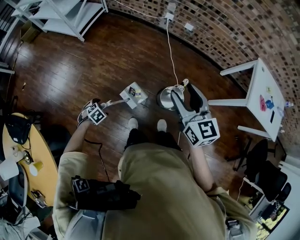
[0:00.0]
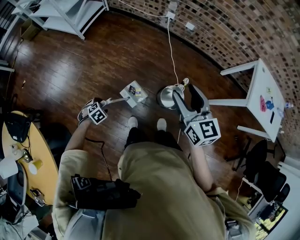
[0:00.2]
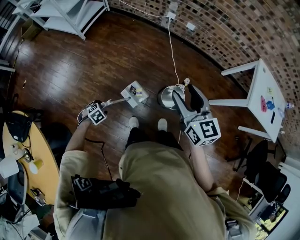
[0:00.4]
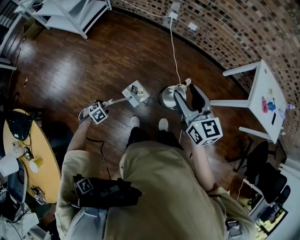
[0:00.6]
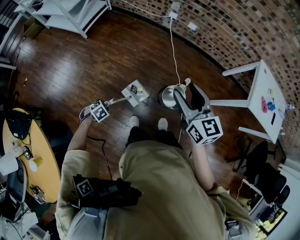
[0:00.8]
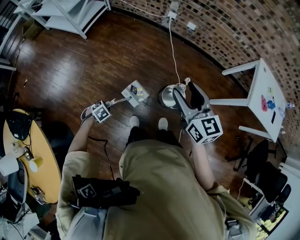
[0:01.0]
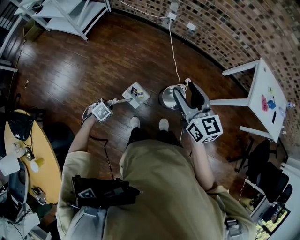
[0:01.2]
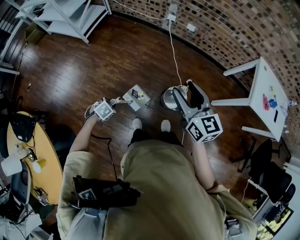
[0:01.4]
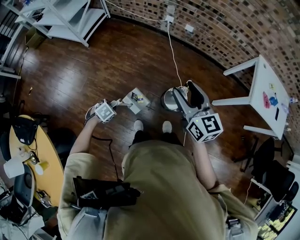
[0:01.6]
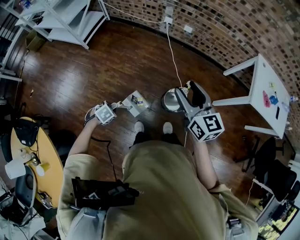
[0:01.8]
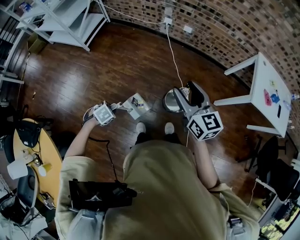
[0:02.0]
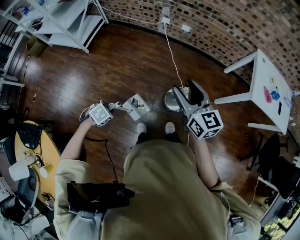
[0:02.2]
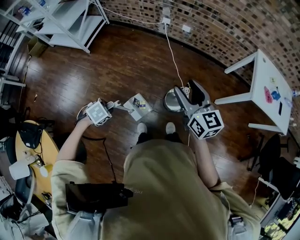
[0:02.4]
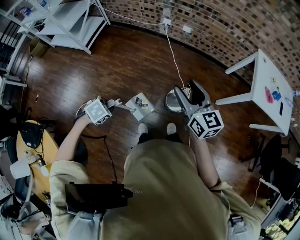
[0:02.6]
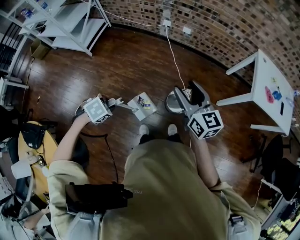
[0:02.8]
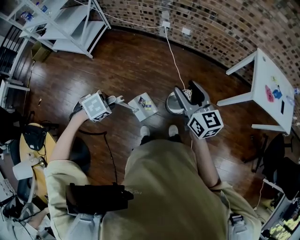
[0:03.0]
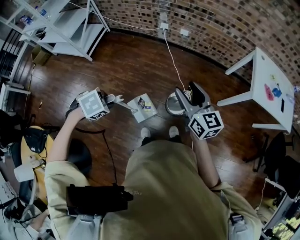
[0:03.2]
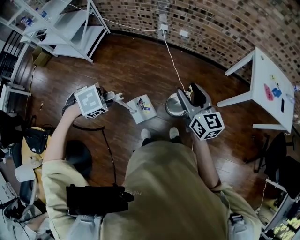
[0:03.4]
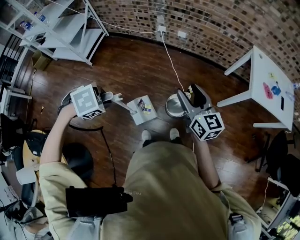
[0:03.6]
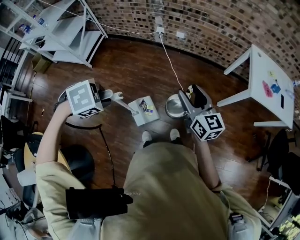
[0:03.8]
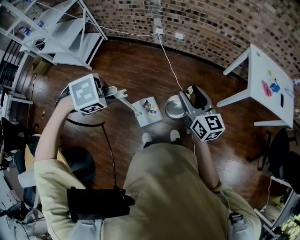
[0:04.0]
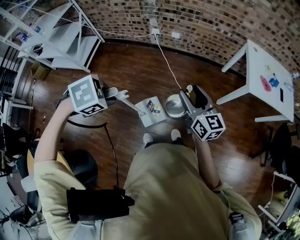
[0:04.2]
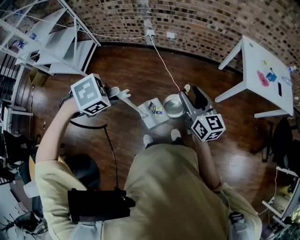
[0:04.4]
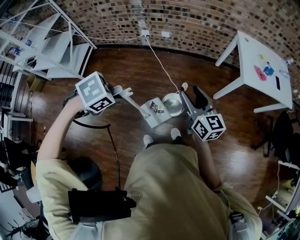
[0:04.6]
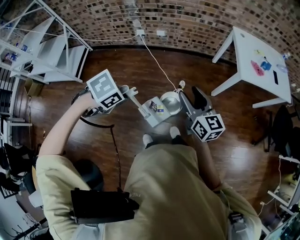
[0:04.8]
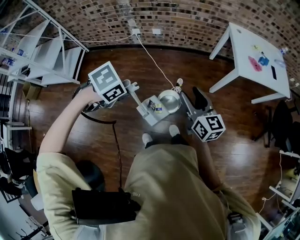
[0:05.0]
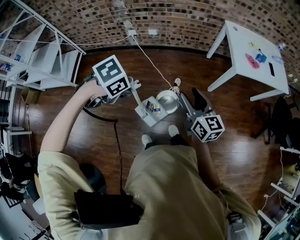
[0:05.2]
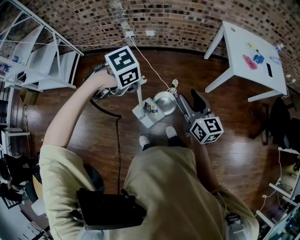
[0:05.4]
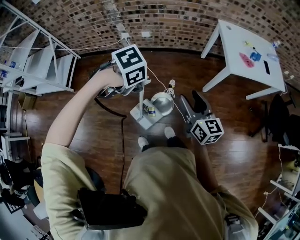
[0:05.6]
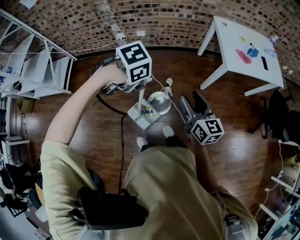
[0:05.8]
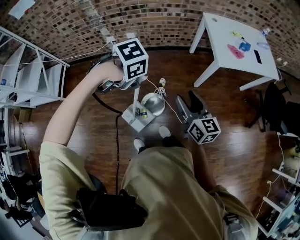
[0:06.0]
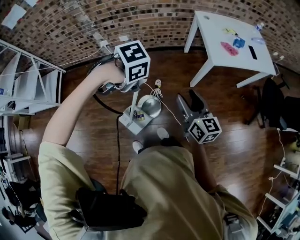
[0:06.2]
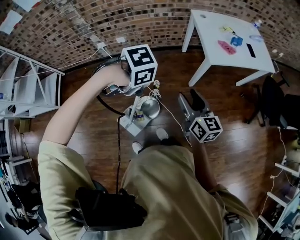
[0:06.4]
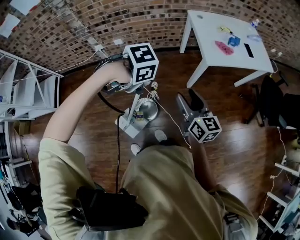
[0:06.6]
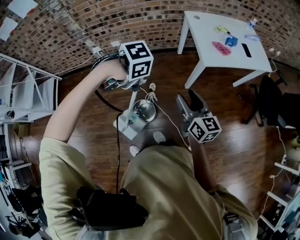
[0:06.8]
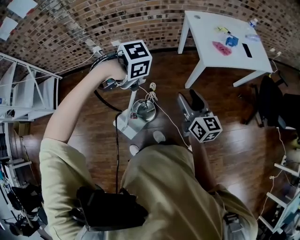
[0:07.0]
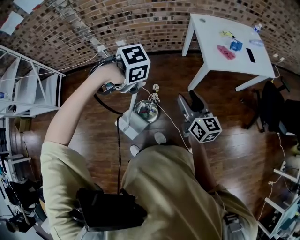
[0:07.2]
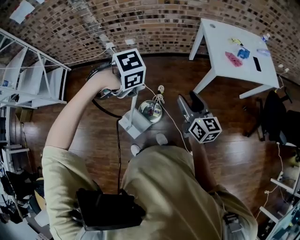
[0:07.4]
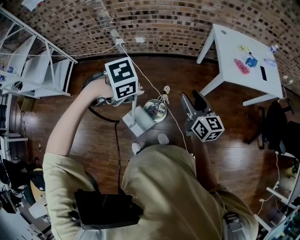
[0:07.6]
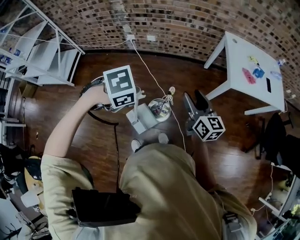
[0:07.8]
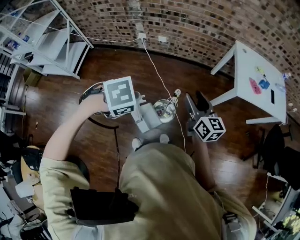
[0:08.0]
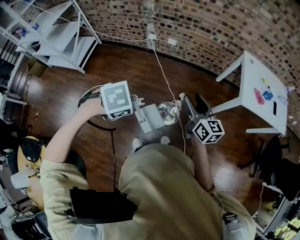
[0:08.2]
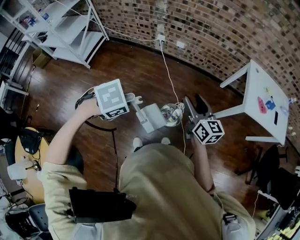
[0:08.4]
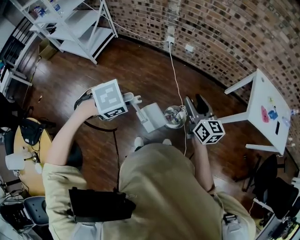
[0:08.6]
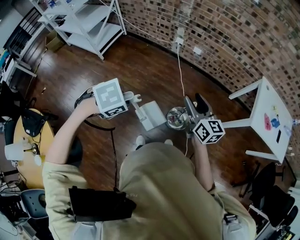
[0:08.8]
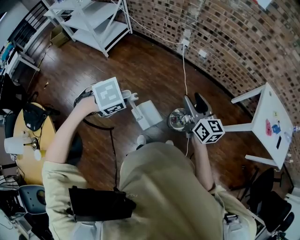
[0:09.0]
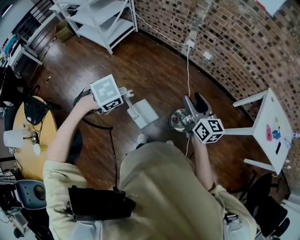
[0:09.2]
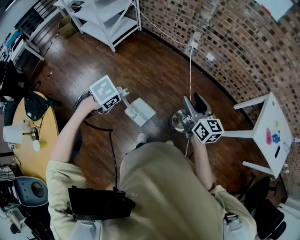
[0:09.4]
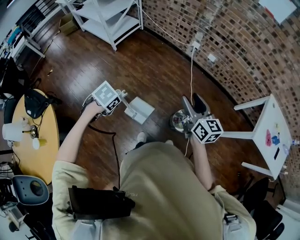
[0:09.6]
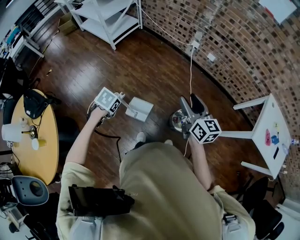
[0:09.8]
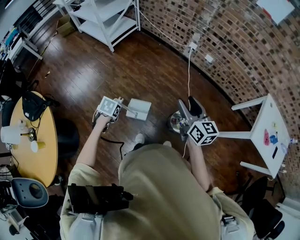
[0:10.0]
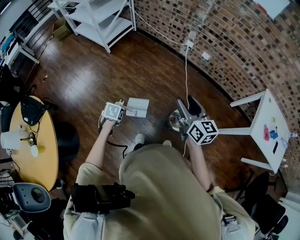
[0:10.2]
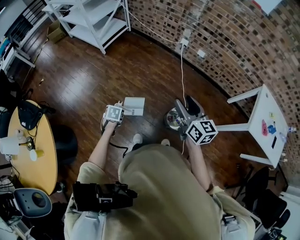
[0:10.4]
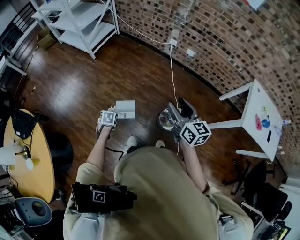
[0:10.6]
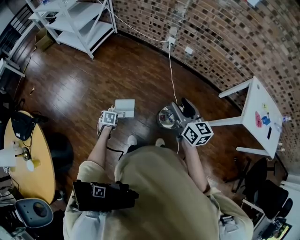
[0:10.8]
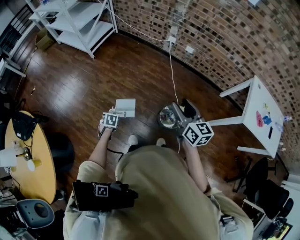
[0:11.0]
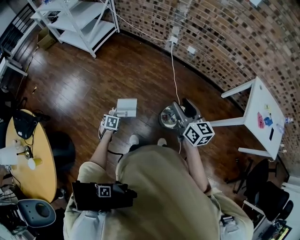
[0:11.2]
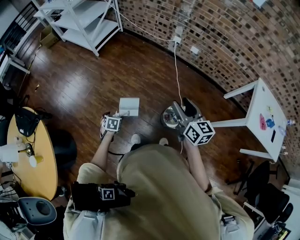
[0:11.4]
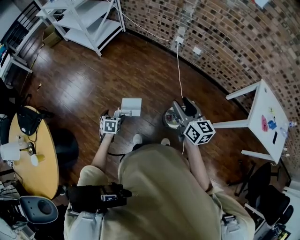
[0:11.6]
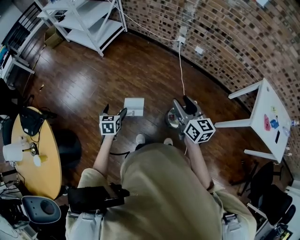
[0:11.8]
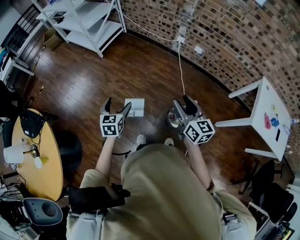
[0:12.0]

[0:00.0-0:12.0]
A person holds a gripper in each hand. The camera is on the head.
0:00.0 to 0:01.6: The left gripper moves roughly 5 cm, and closes its fingers.
0:01.6 to 0:03.0: The left gripper travels upward by some 20 cm.
0:03.0 to 0:04.4: The right gripper changes place by about 10 cm. Meanwhile the left gripper shifts about 15 cm upward.
0:04.4 to 0:06.0: The left gripper moves approximately 25 cm. The right gripper changes place by roughly 15 cm.
0:07.6 to 0:09.0: The right gripper shifts by roughly 30 cm, and turns by some 30 degrees. The left gripper ends up some 35 cm from where it was, and swivels approximately 30 degrees.
0:09.0 to 0:10.4: The right gripper changes place by some 5 cm. Meanwhile the left gripper heads downward, covering about 30 cm, and rotates around the line of its fingers by roughly 50 degrees, counterclockwise from behind.
0:10.4 to 0:12.0: The left gripper shifts roughly 15 cm upward, angles its fingers upward, by roughly 40 degrees, and opens its fingers.

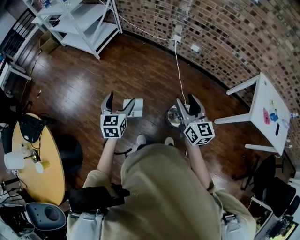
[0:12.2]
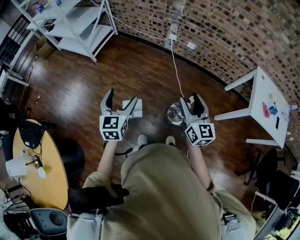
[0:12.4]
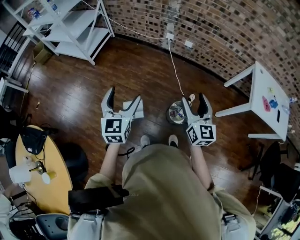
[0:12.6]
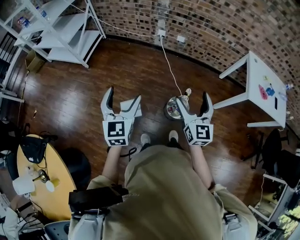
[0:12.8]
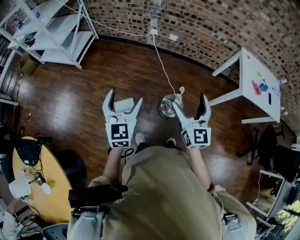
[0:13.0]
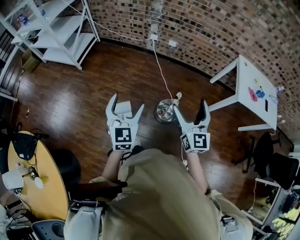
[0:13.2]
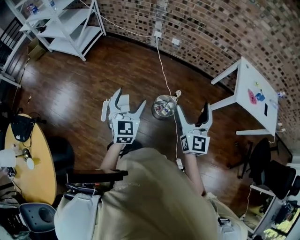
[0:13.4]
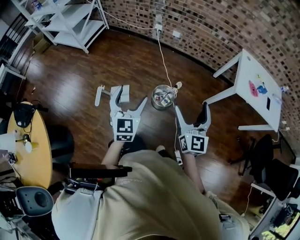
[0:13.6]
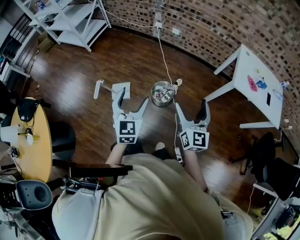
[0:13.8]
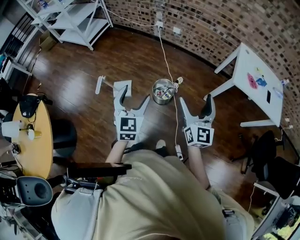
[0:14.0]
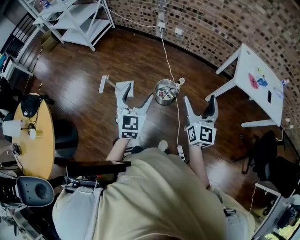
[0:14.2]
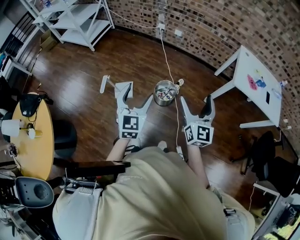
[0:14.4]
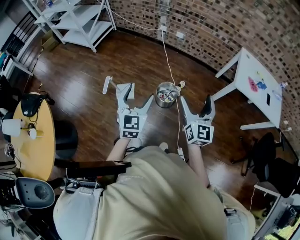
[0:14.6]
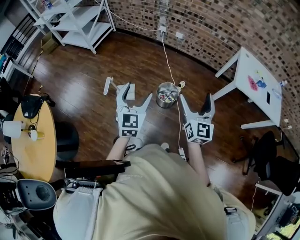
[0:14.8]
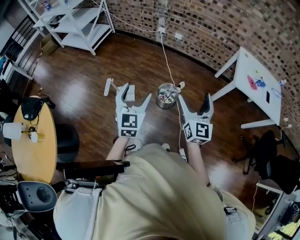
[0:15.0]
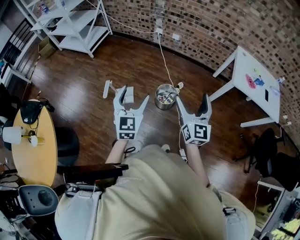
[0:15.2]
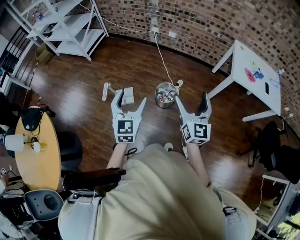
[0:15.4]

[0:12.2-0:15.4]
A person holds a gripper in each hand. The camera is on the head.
0:12.2 to 0:13.8: The left gripper is displaced to the right and backward by some 35 cm, while the right gripper moves backward and to the right, approximately 35 cm, turns by some 20 degrees, and opens.
0:13.8 to 0:15.4: Both grippers move to the left, about 5 cm.

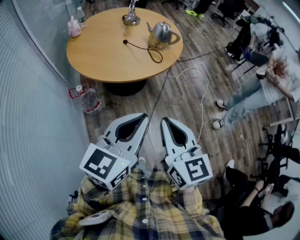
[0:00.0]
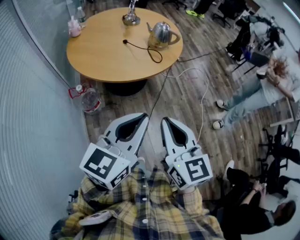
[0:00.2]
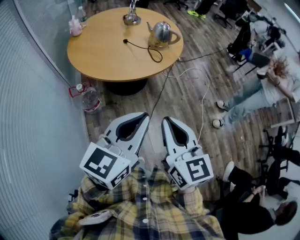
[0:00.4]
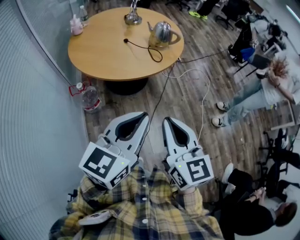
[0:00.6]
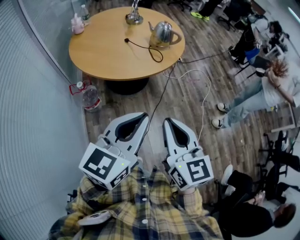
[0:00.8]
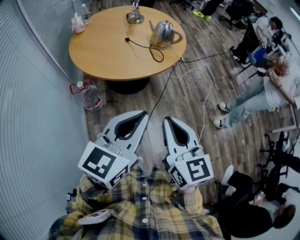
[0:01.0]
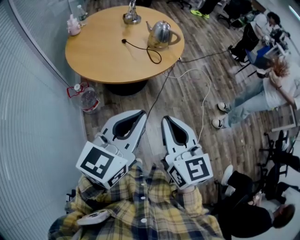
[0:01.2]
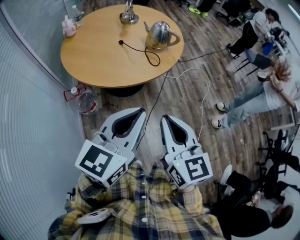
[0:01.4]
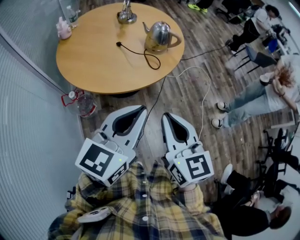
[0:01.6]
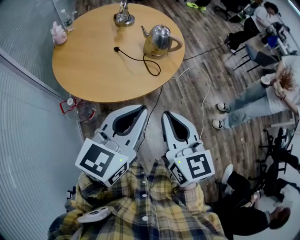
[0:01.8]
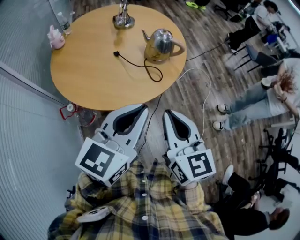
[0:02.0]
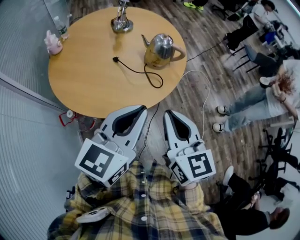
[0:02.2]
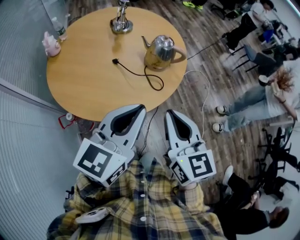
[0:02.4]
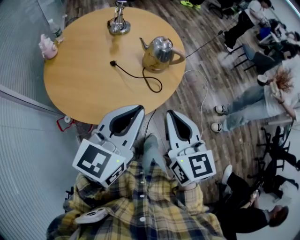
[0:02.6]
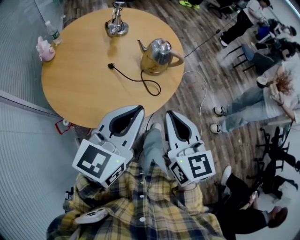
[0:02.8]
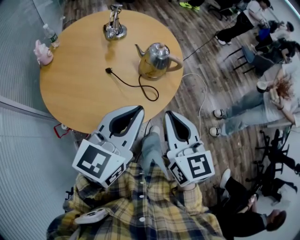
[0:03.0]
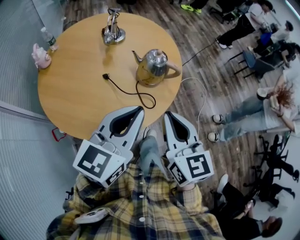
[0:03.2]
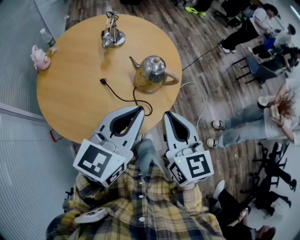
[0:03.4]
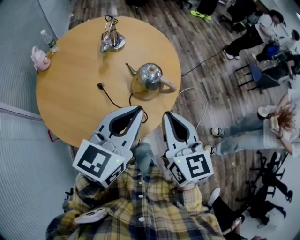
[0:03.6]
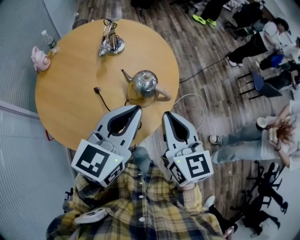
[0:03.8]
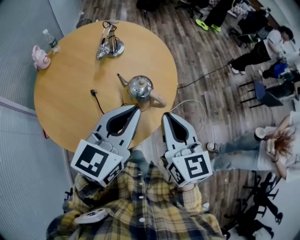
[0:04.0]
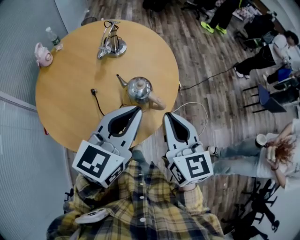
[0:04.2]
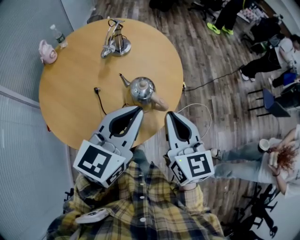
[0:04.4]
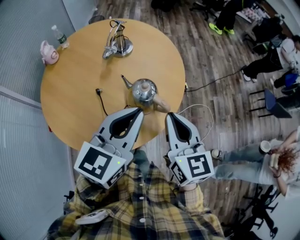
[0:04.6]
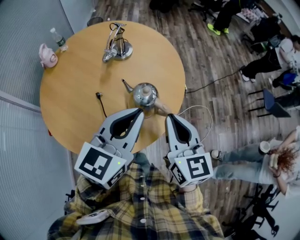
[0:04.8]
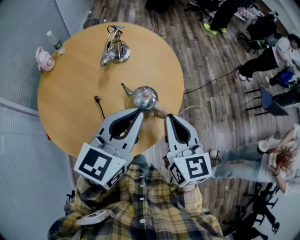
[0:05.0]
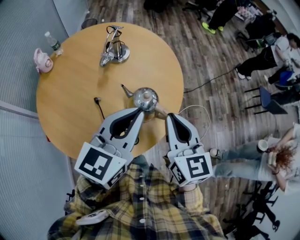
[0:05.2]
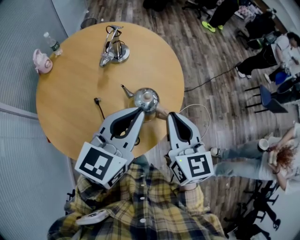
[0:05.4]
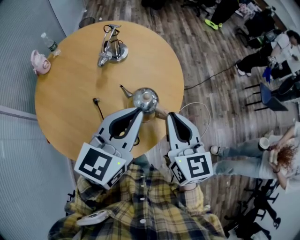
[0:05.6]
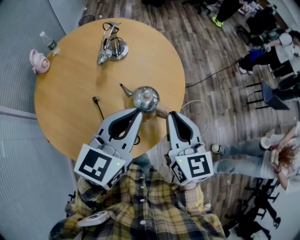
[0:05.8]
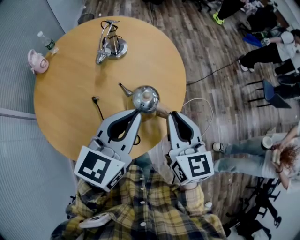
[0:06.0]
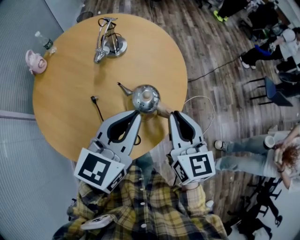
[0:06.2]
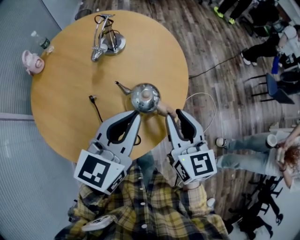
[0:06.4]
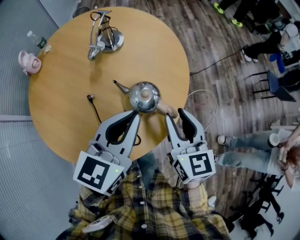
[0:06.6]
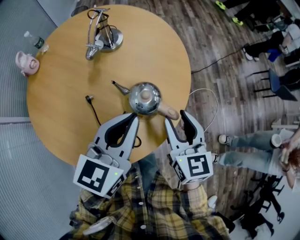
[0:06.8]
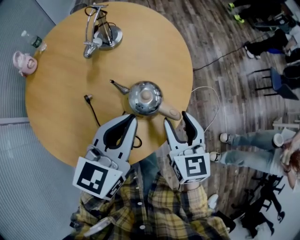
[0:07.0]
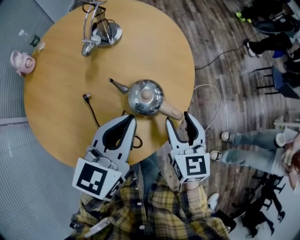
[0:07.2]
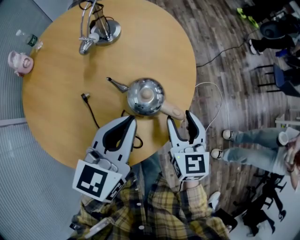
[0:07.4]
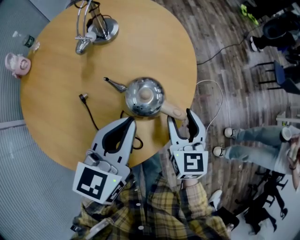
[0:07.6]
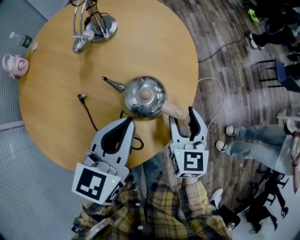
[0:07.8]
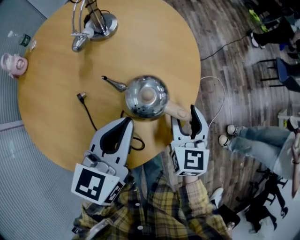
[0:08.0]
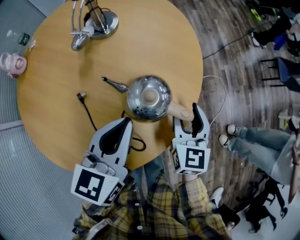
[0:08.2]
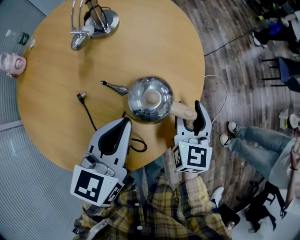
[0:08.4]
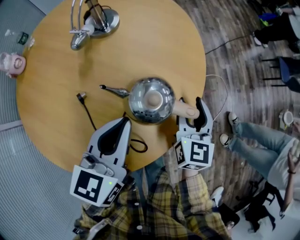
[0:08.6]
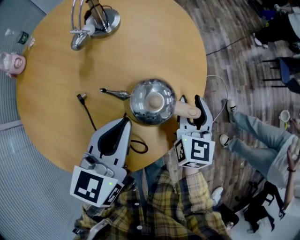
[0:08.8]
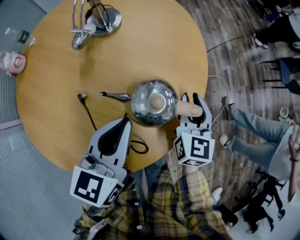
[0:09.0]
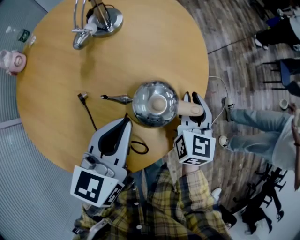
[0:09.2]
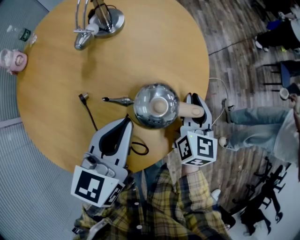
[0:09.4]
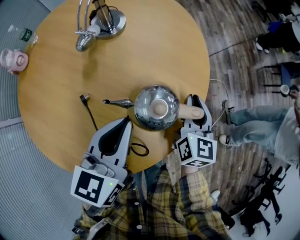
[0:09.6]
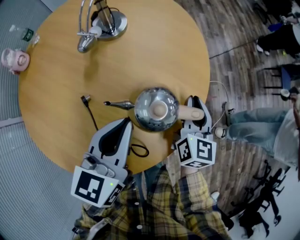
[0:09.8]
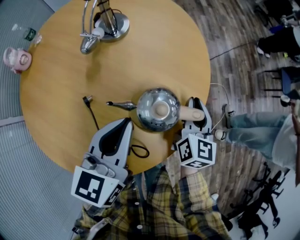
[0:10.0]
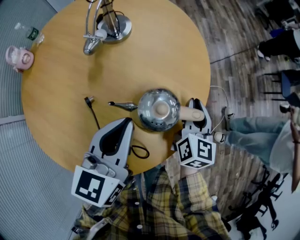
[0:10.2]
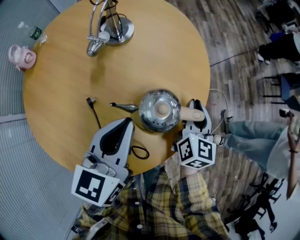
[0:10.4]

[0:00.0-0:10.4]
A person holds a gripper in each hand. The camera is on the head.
0:00.0 to 0:01.4: The two grippers go some 10 cm forward.
0:01.4 to 0:03.0: The two grippers go some 25 cm forward.
0:03.0 to 0:04.4: The grippers both shift forward and to the right by approximately 25 cm.
0:04.4 to 0:06.0: The two grippers go approximately 5 cm forward.
0:06.0 to 0:07.4: The grippers both shift downward by some 15 cm. The right gripper opens its fingers.
0:07.4 to 0:09.0: The left gripper moves downward, about 5 cm; the right gripper moves forward, some 5 cm, and closes.
0:09.0 to 0:10.4: There are only small adjustments of the grippers.
